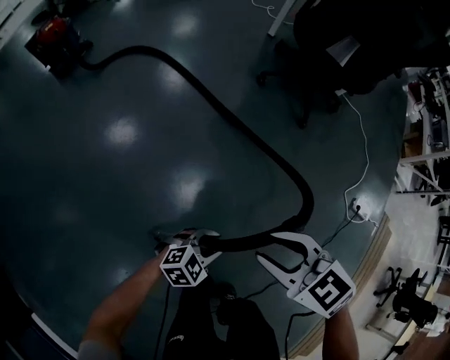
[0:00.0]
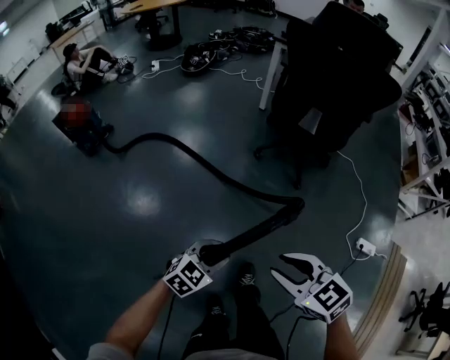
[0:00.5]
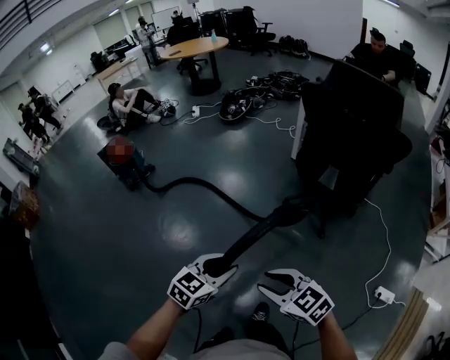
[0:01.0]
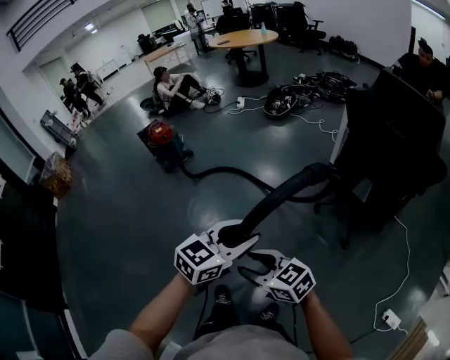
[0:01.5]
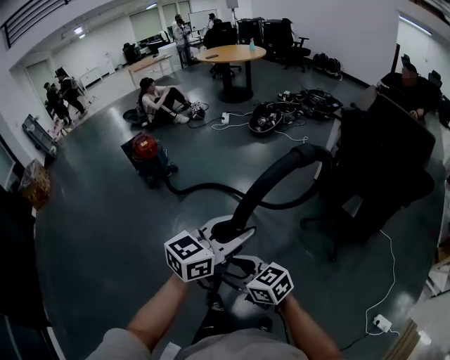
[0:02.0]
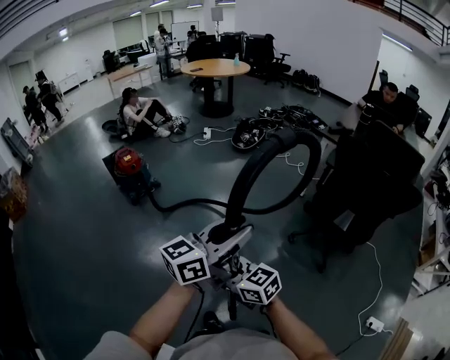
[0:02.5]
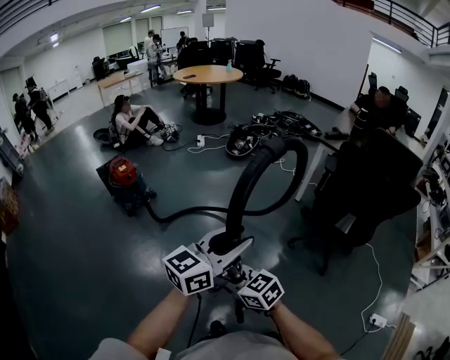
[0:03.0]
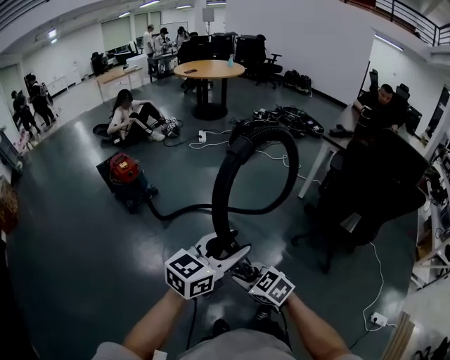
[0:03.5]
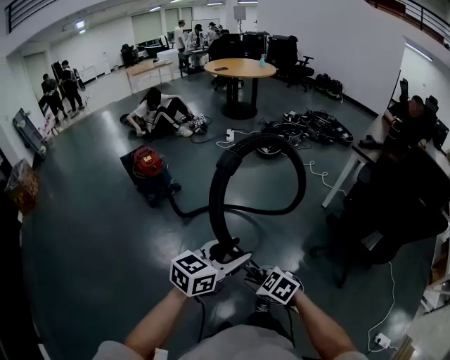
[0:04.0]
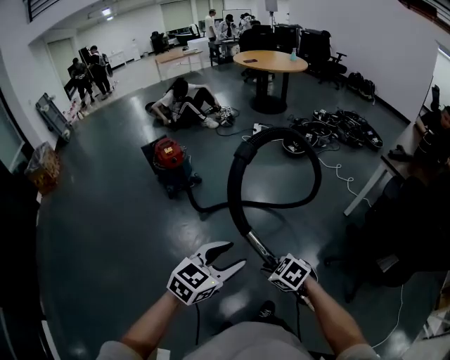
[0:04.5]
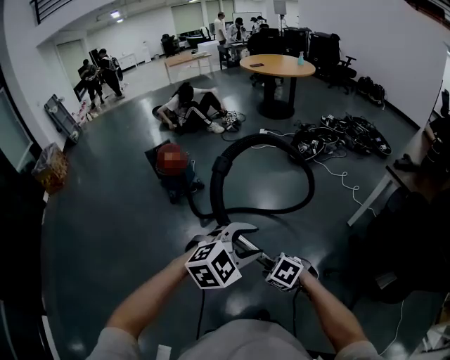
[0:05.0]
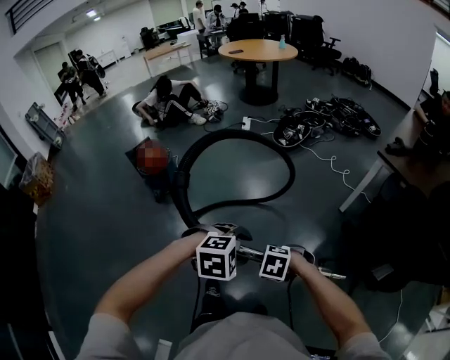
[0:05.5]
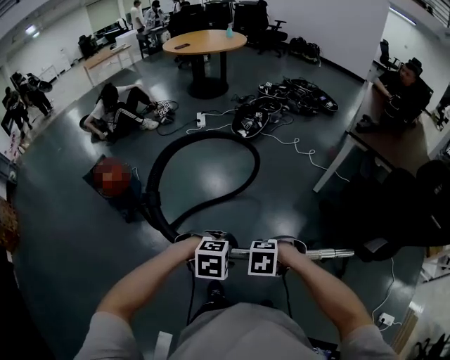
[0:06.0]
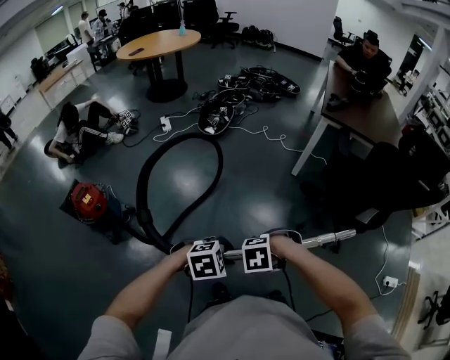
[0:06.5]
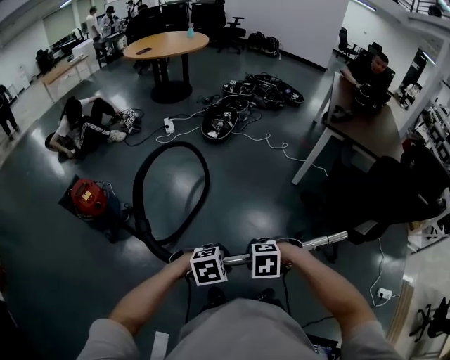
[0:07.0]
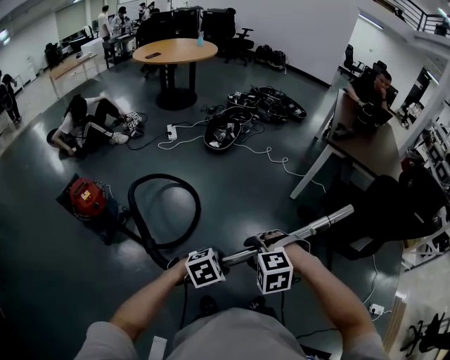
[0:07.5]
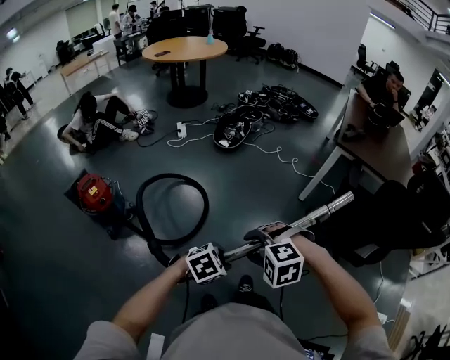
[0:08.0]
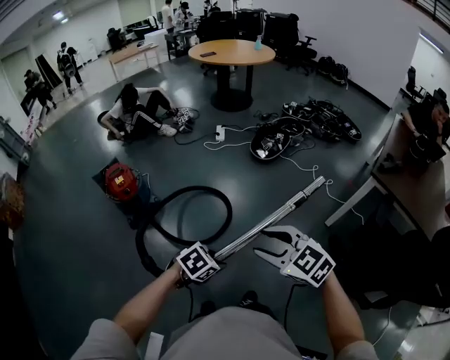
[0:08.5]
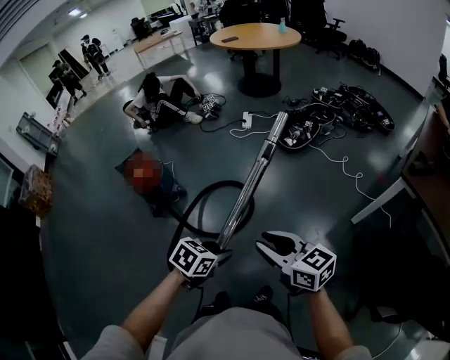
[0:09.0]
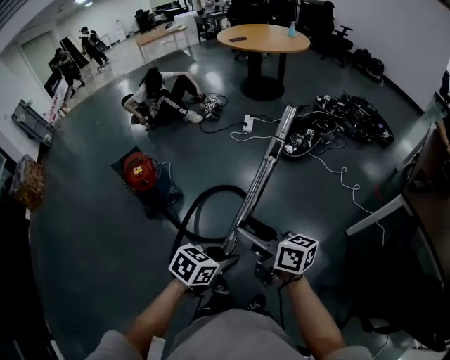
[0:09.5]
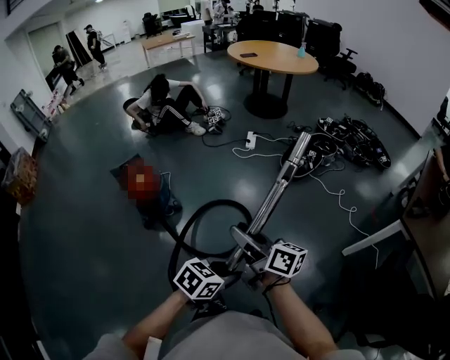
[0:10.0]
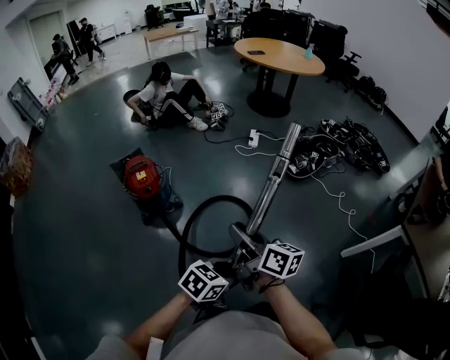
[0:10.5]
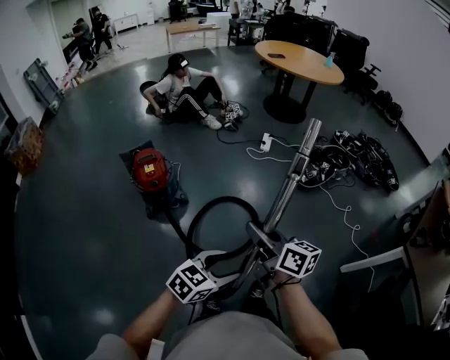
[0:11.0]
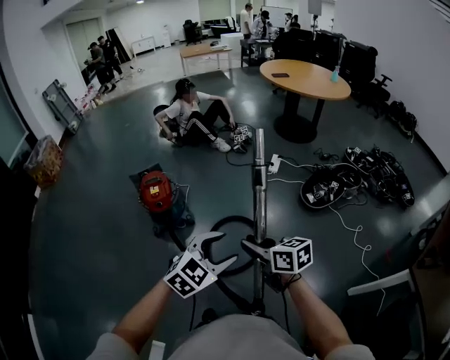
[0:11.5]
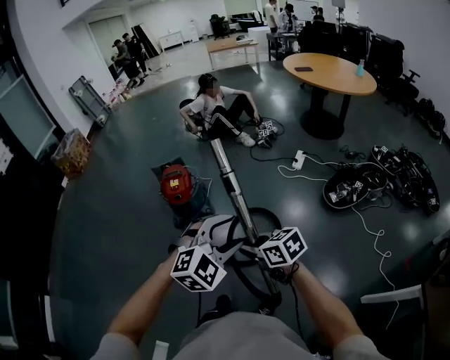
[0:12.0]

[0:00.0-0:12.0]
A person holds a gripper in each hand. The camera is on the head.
0:00.0 to 0:02.0: The right gripper changes place by about 35 cm, and rotates some 30 degrees. Meanwhile the left gripper heads upward, covering about 60 cm, and tilts its fingers about 40 degrees upward.
0:02.0 to 0:04.0: The right gripper shifts approximately 20 cm forward, to the left and downward, angles its fingers downward, by about 30 degrees, and closes up, while the left gripper travels to the left and forward by roughly 25 cm.
0:04.0 to 0:06.0: The right gripper shifts by approximately 30 cm, and tilts its fingers approximately 30 degrees downward, while the left gripper shifts by roughly 30 cm, and tilts its fingers roughly 60 degrees downward.
0:06.0 to 0:08.0: The right gripper shifts by some 15 cm, changes its angle by some 30 degrees, and opens its fingers; the left gripper shifts by about 10 cm, and changes its angle by about 30 degrees.
0:08.0 to 0:10.0: The right gripper shifts by some 30 cm, and angles its fingers upward, by about 70 degrees. The left gripper ends up approximately 20 cm from where it was, and rotates around the line of its fingers by approximately 40 degrees, counterclockwise from behind.
0:10.0 to 0:12.0: The right gripper ends up roughly 10 cm from where it was, turns by about 60 degrees, and closes, while the left gripper ends up roughly 25 cm from where it was, changes its angle by about 60 degrees, and opens up.

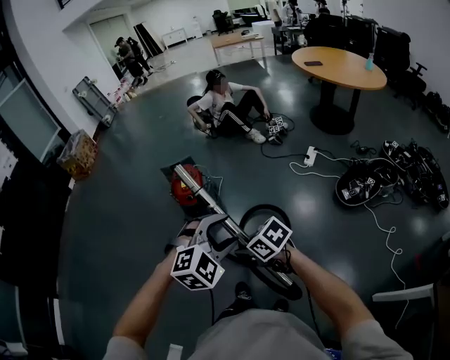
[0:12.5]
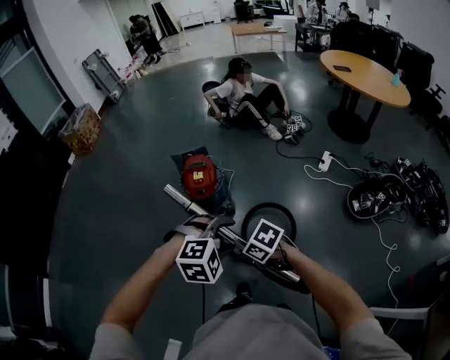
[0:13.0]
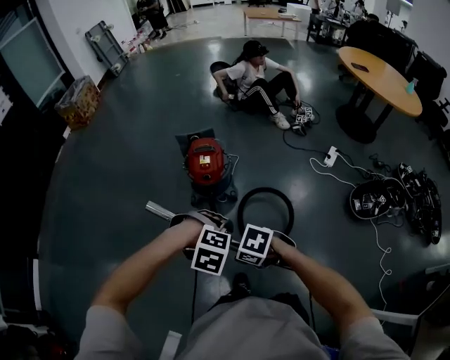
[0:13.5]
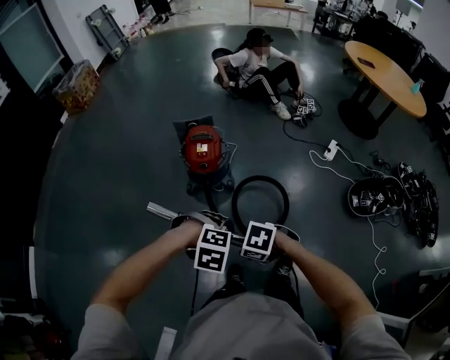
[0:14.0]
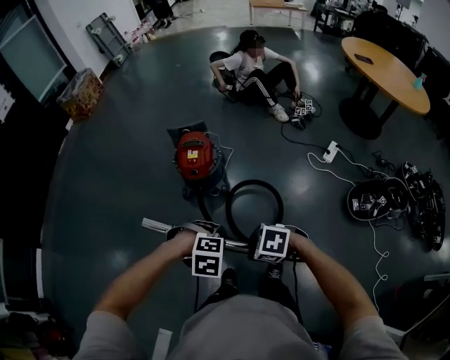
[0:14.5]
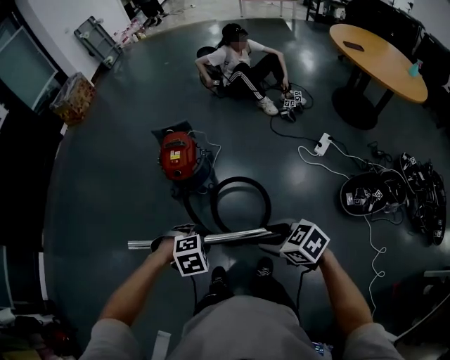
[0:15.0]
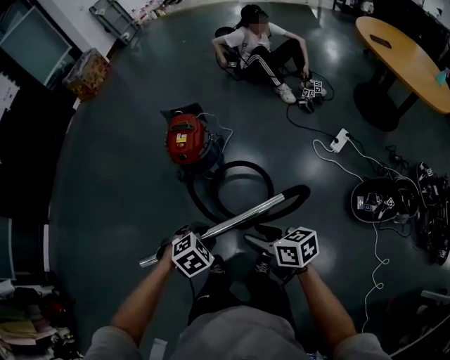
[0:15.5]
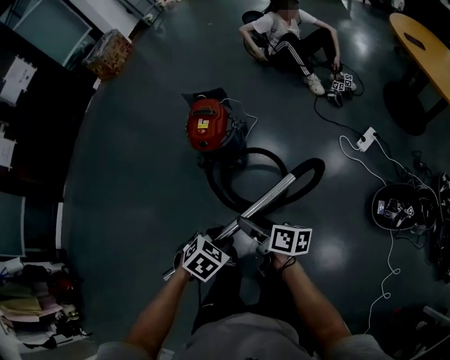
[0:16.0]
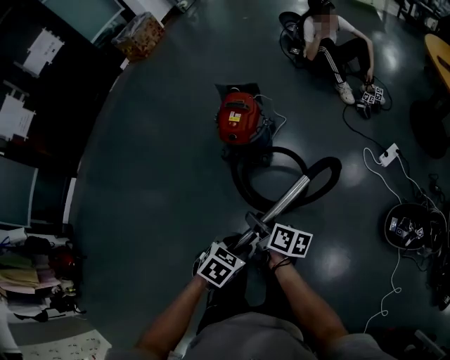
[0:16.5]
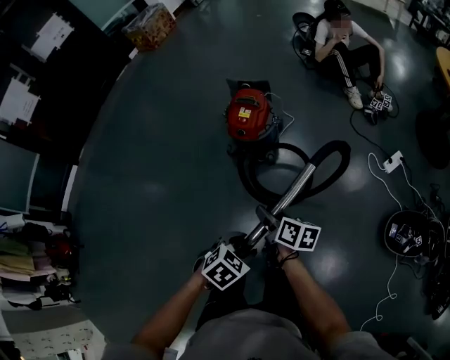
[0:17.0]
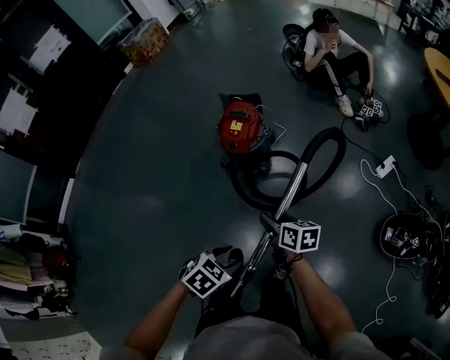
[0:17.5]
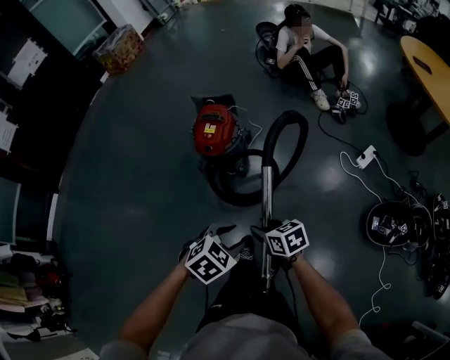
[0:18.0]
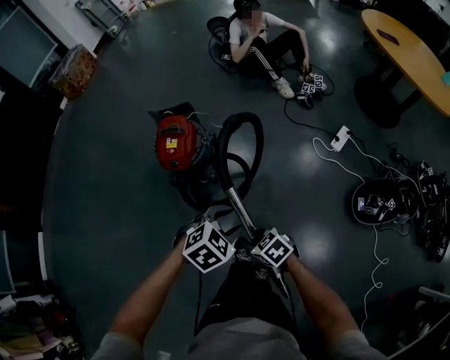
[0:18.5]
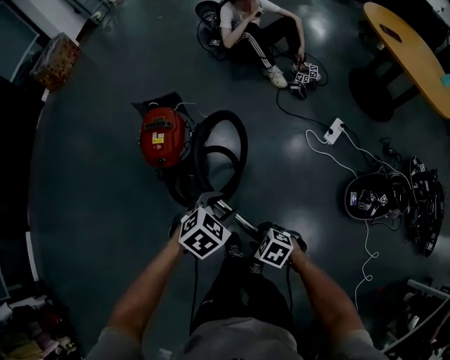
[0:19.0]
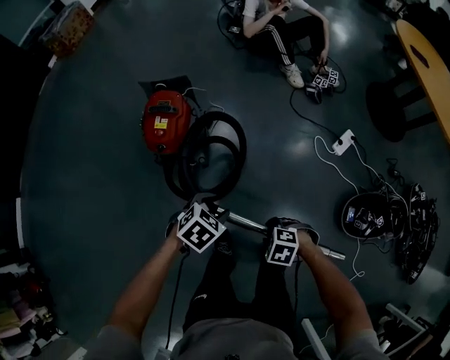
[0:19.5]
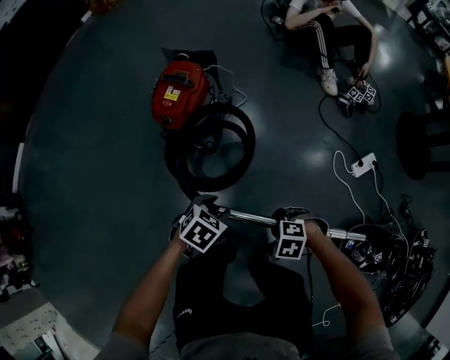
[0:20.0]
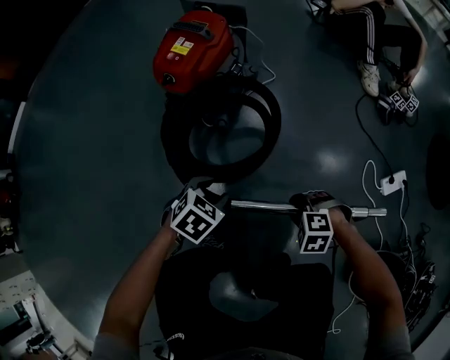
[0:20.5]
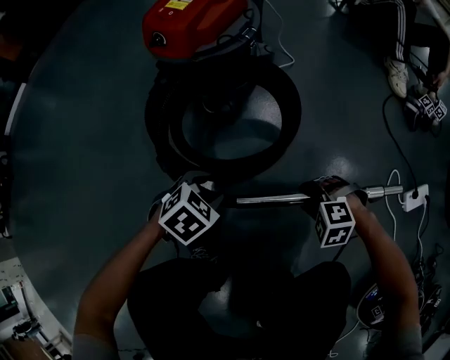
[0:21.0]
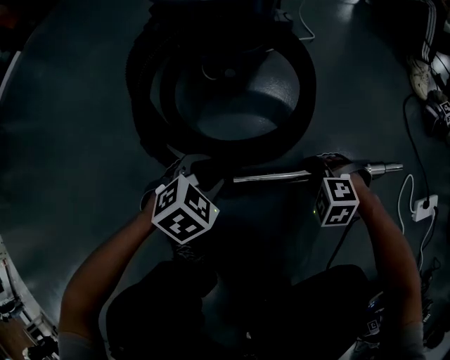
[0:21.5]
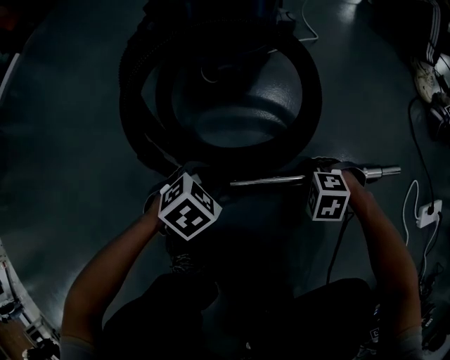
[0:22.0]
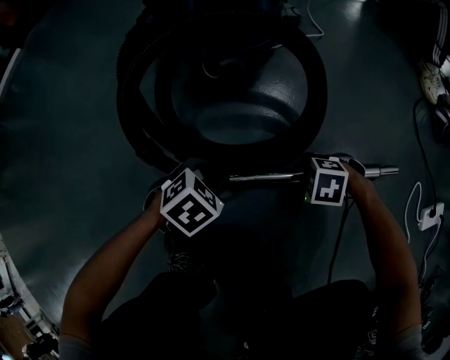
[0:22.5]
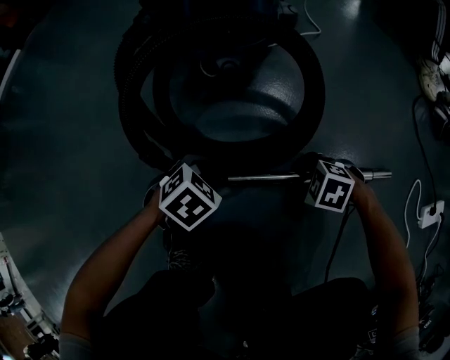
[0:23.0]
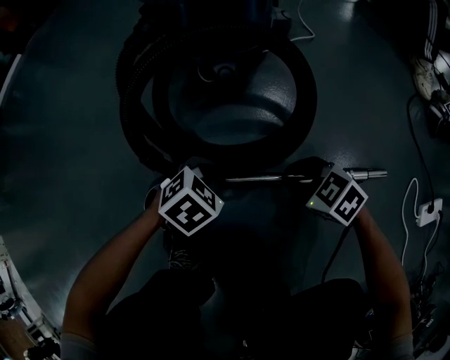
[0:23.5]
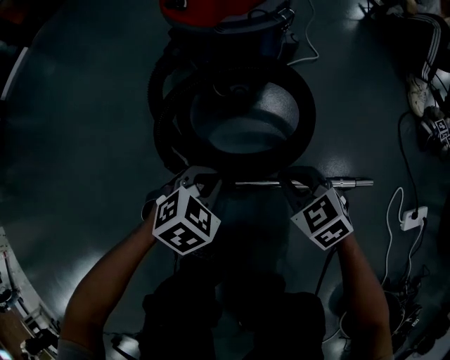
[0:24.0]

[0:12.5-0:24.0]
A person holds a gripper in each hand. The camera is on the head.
0:12.5 to 0:14.5: The right gripper changes place by some 10 cm, and changes its angle by roughly 40 degrees; the left gripper heads downward, covering some 20 cm, and points its fingers some 40 degrees further downward.
0:14.5 to 0:16.5: The left gripper shifts by some 10 cm, and rolls counterclockwise, seen from behind, by approximately 80 degrees. Meanwhile the right gripper moves about 15 cm, and tilts its fingers approximately 40 degrees upward.
0:16.5 to 0:18.5: The left gripper ends up about 20 cm from where it was, and swivels some 40 degrees; the right gripper moves about 15 cm, and rolls counterclockwise, seen from behind, by about 50 degrees.
0:18.5 to 0:20.0: The left gripper goes roughly 25 cm downward, and swivels some 40 degrees. The right gripper changes place by some 25 cm, and rotates around the line of its fingers by some 50 degrees, counterclockwise from behind.
0:20.0 to 0:22.0: Both grippers travel together downward, some 50 cm. The right gripper turns by about 30 degrees.
0:22.0 to 0:24.0: The two grippers go about 15 cm upward. The right gripper swivels about 50 degrees, and closes up, while the left gripper closes.

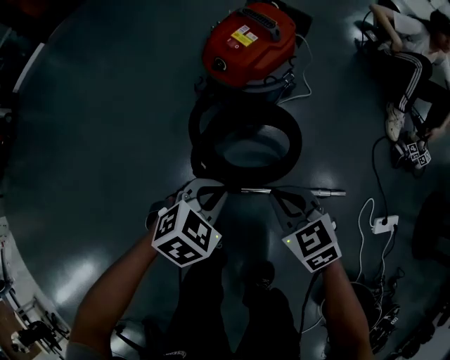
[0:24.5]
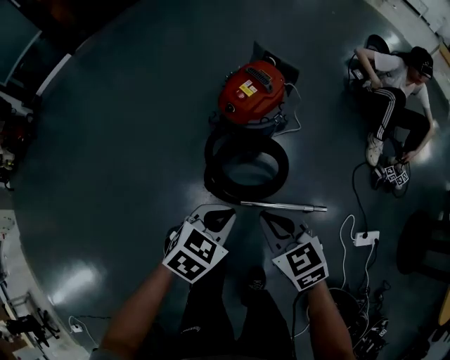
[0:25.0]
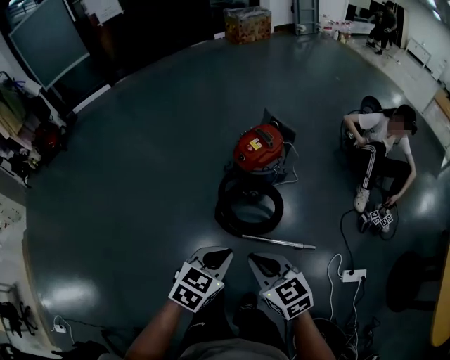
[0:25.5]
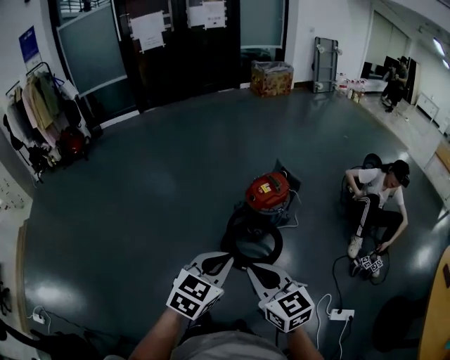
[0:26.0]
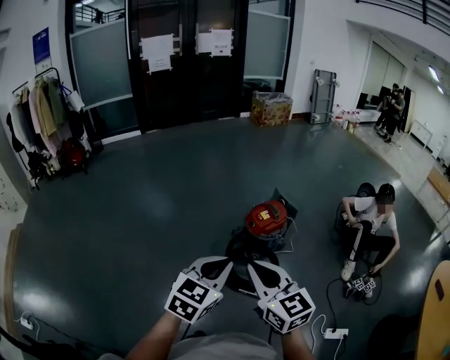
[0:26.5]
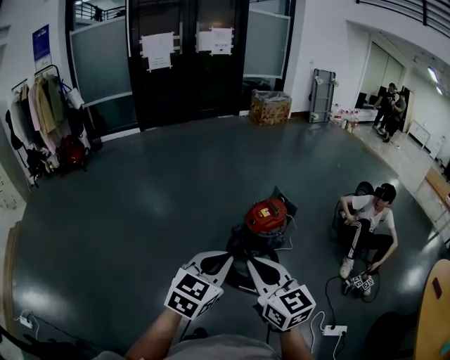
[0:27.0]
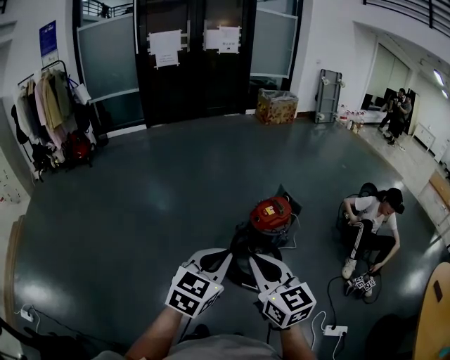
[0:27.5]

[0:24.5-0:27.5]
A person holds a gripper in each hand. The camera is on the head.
0:24.5 to 0:26.0: Both grippers move upward and backward, about 60 cm. The right gripper rotates roughly 30 degrees. The left gripper swivels roughly 50 degrees.
0:26.0 to 0:27.5: The two grippers go about 10 cm upward and to the left.
